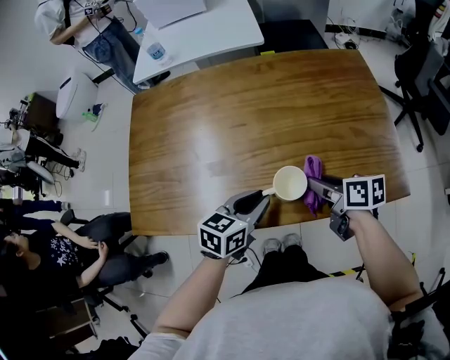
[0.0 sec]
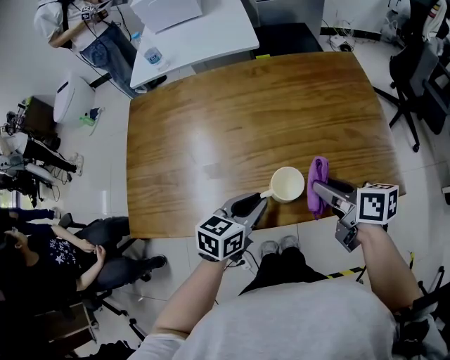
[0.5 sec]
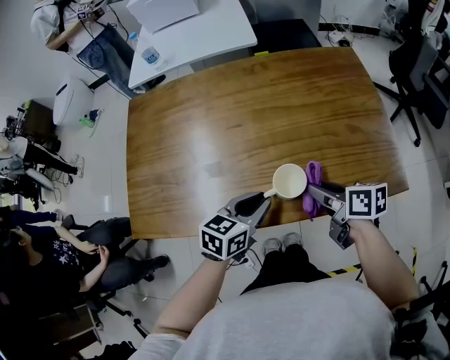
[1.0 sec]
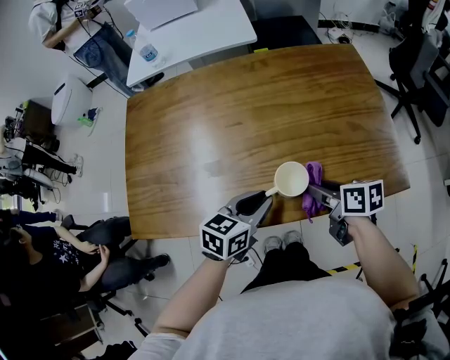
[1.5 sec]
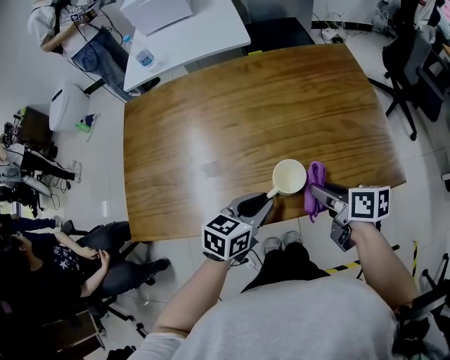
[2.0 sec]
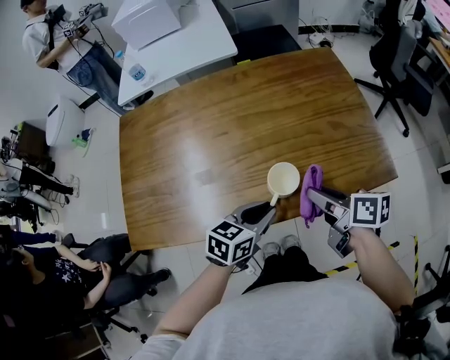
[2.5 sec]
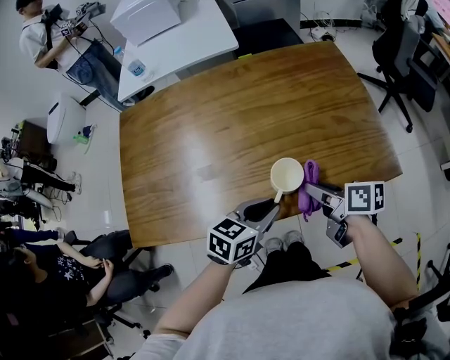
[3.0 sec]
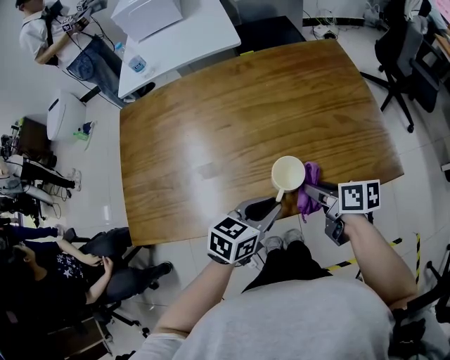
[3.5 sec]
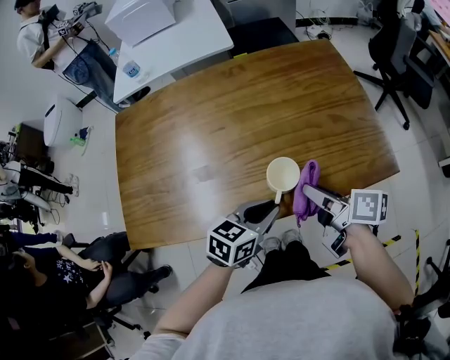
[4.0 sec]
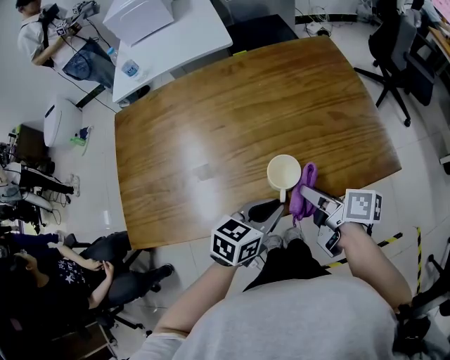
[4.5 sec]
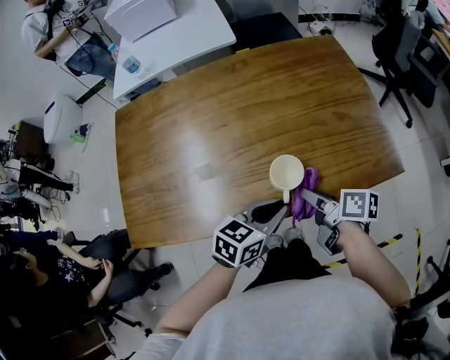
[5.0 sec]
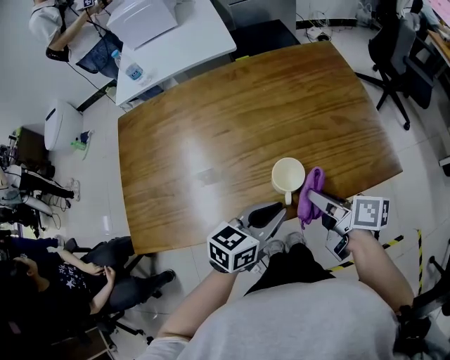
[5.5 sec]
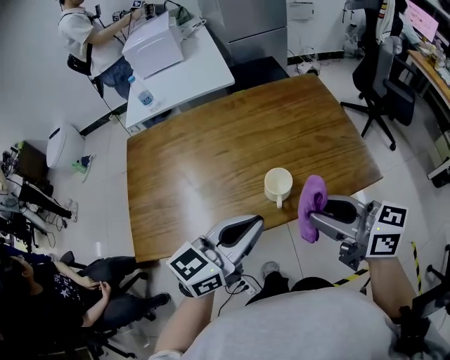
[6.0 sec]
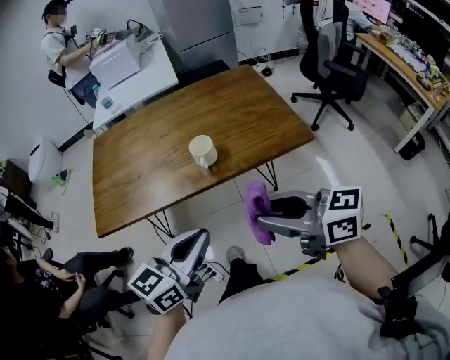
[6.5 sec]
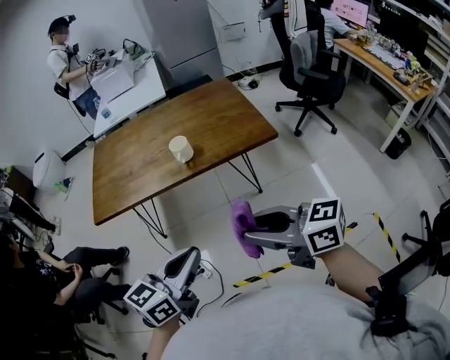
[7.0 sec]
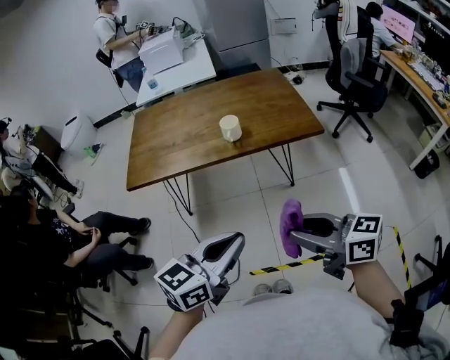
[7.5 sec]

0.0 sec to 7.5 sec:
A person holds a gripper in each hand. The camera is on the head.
0.0 sec to 2.0 sec: The right gripper reaches roughly 5 cm upward, then returns.
2.0 sec to 4.0 sec: The right gripper swings up and down, approximately 5 cm each way, with 2 reversals.
5.5 sec to 7.5 sec: Both grippers are carried backward, approximately 50 cm. The left gripper shifts some 20 cm upward. Meanwhile the right gripper swivels some 50 degrees.

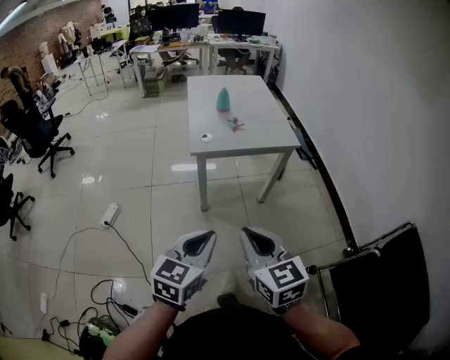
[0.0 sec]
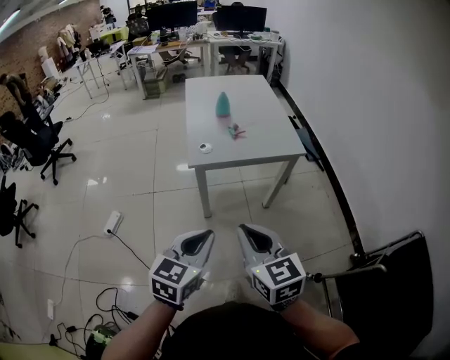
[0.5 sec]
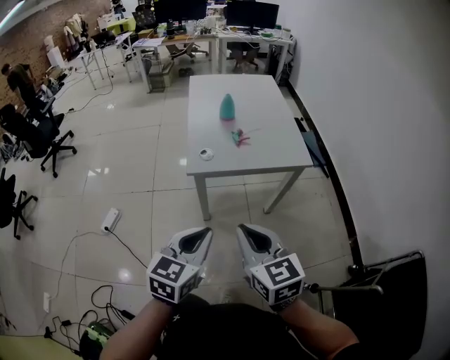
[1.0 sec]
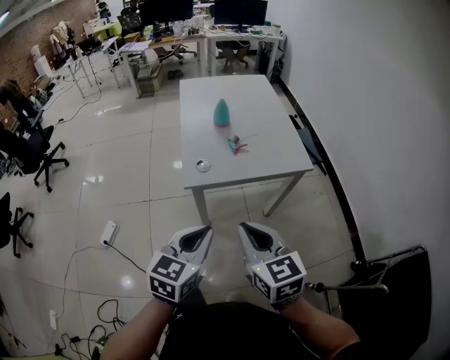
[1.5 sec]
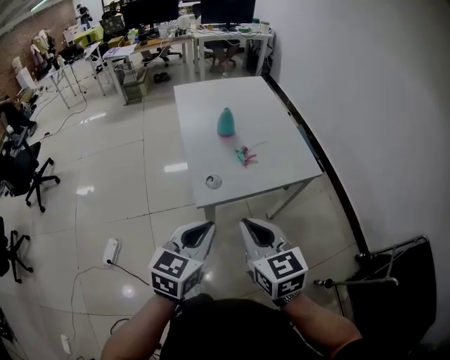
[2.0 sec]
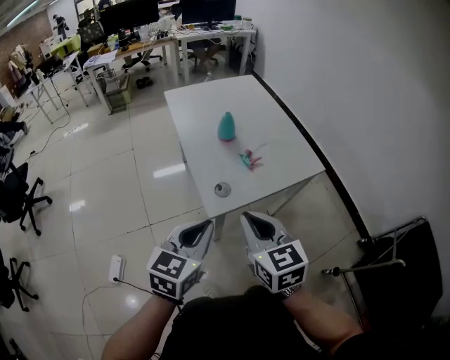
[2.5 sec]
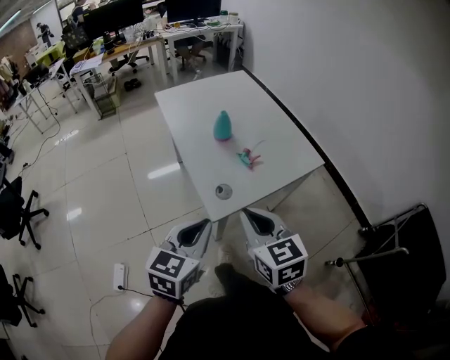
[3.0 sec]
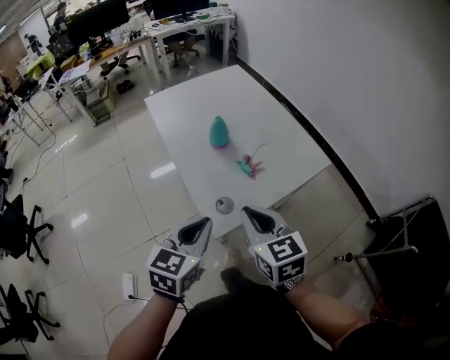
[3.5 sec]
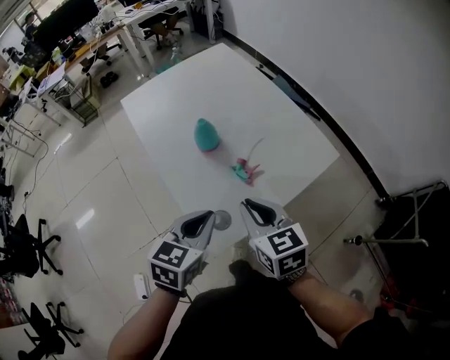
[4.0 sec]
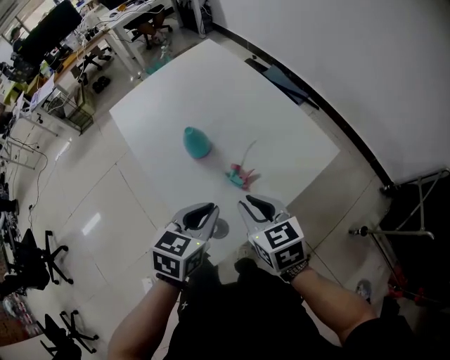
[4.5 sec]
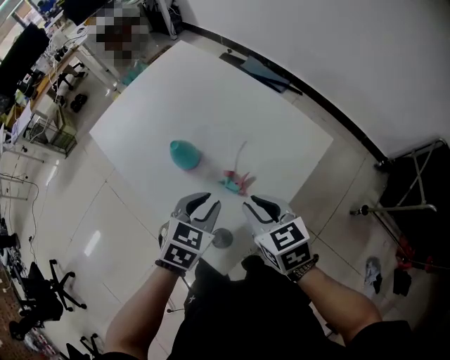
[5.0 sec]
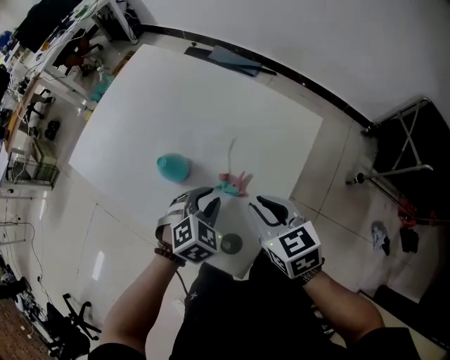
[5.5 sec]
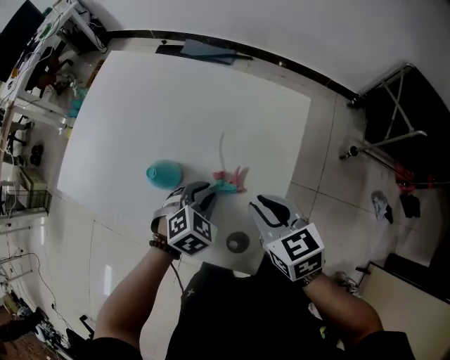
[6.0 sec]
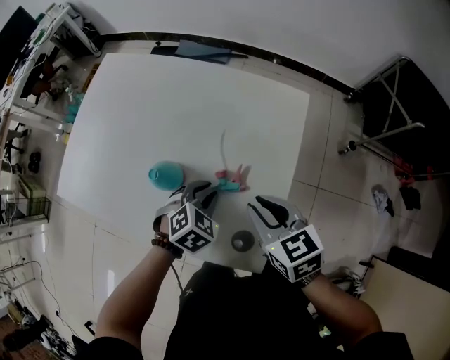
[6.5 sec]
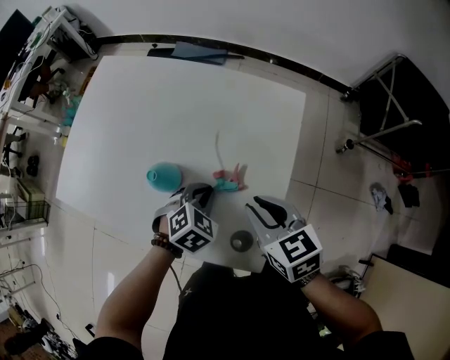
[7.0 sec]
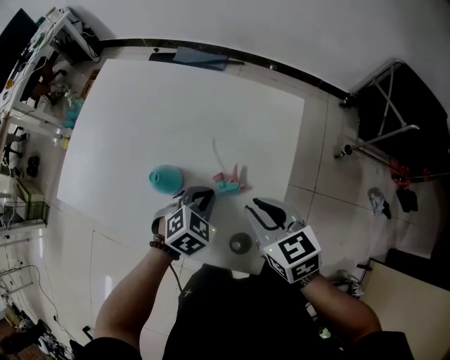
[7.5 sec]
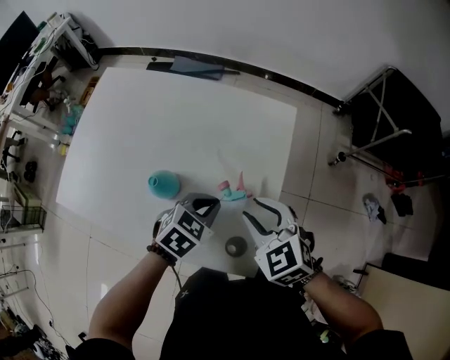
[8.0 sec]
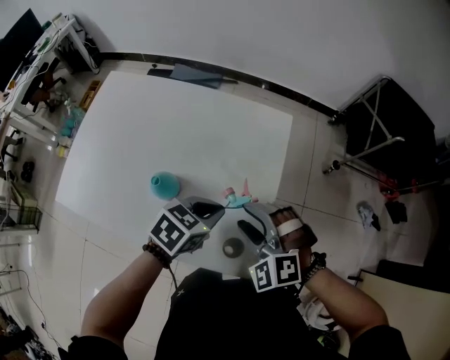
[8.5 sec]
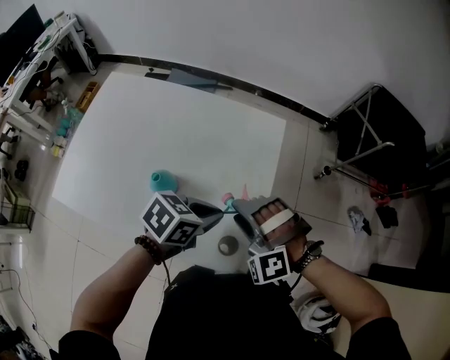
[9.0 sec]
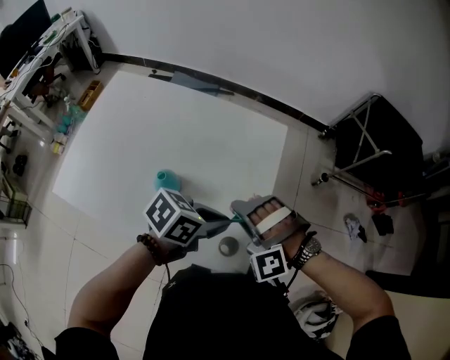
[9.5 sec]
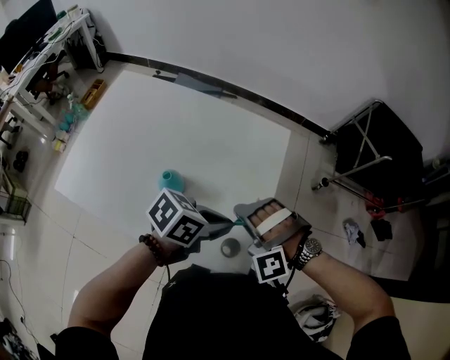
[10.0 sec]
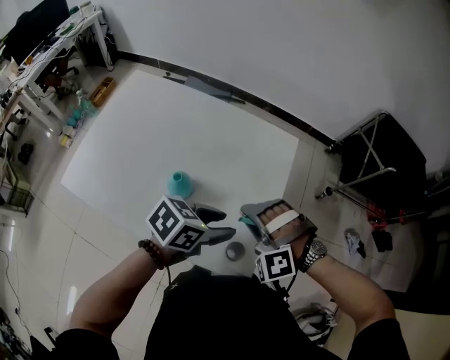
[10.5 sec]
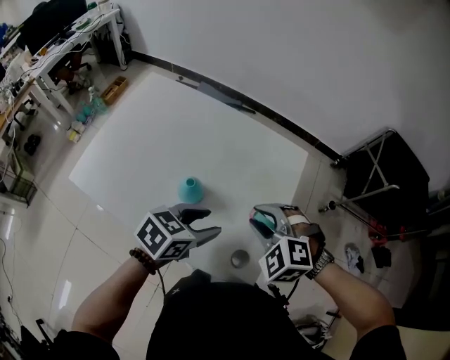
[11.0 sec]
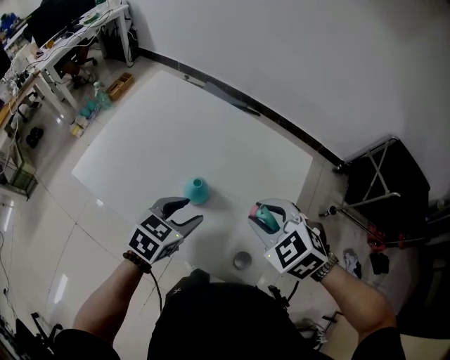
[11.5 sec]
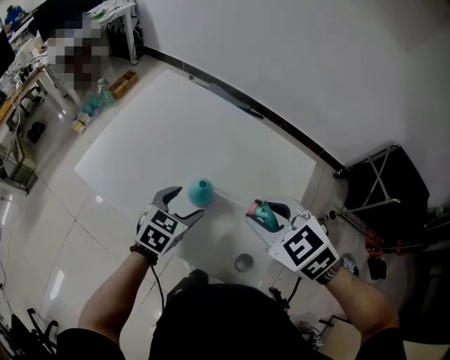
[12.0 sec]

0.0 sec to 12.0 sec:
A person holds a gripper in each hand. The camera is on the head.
0.0 sec to 2.0 sec: The two grippers go roughly 30 cm forward.
2.0 sec to 4.0 sec: The left gripper goes some 20 cm forward, and changes its angle by approximately 20 degrees. The right gripper is displaced forward and downward by some 25 cm, and changes its angle by some 20 degrees.
4.0 sec to 6.0 sec: The right gripper travels downward by about 5 cm, and swivels some 30 degrees. Meanwhile the left gripper travels downward by some 15 cm, and rotates around the line of its fingers by approximately 60 degrees, clockwise from behind.
6.0 sec to 8.0 sec: The left gripper shifts by approximately 5 cm. Meanwhile the right gripper swivels some 30 degrees.
8.0 sec to 10.0 sec: The right gripper twists some 70 degrees counterclockwise, seen from behind, while the left gripper heads upward, covering some 10 cm, and changes its angle by about 40 degrees.
10.0 sec to 12.0 sec: The right gripper travels upward by about 10 cm, and rolls clockwise, seen from behind, by roughly 60 degrees. Meanwhile the left gripper shifts by some 20 cm, rotates approximately 50 degrees, and opens up.

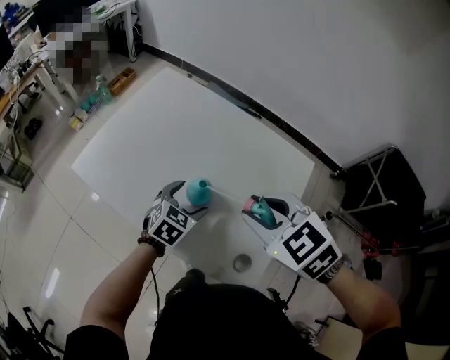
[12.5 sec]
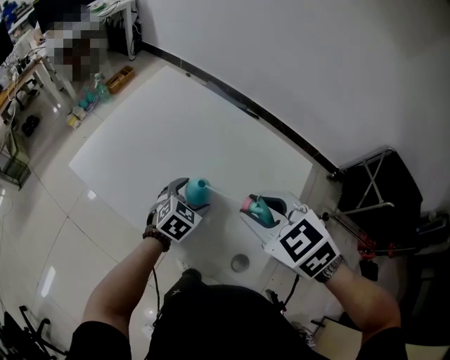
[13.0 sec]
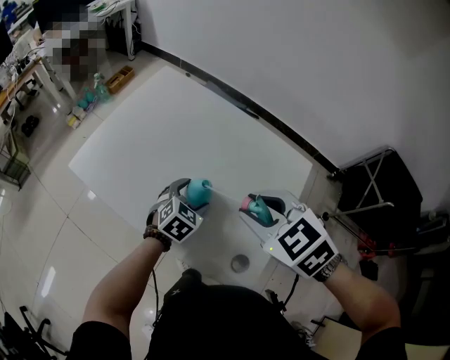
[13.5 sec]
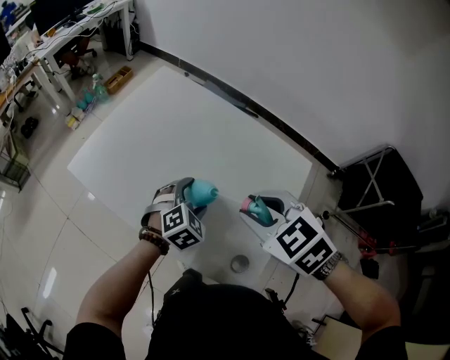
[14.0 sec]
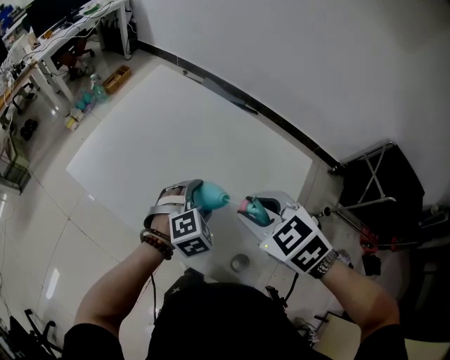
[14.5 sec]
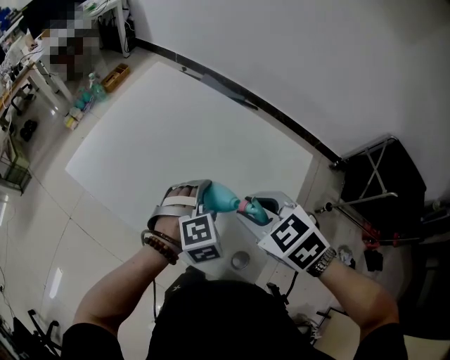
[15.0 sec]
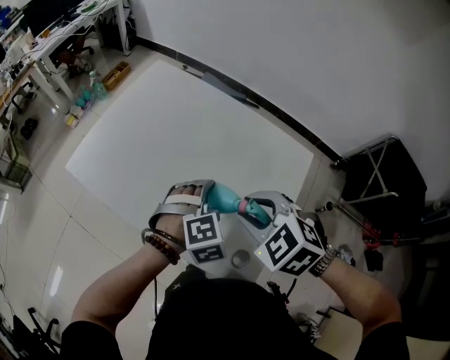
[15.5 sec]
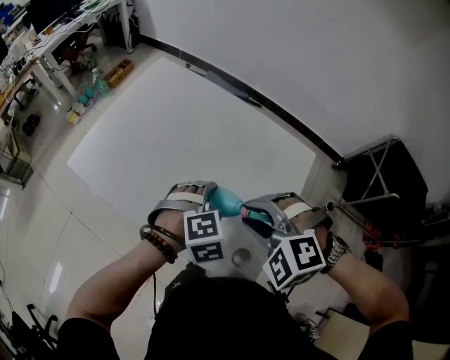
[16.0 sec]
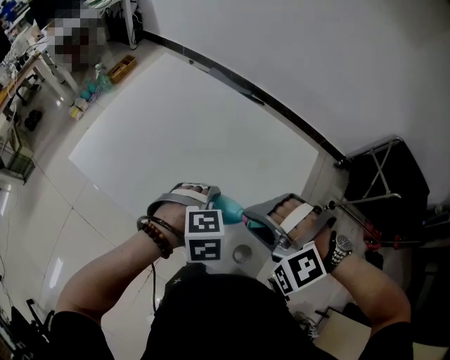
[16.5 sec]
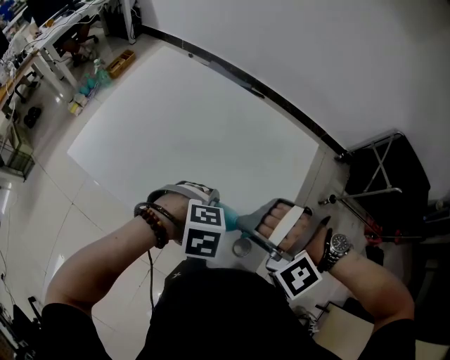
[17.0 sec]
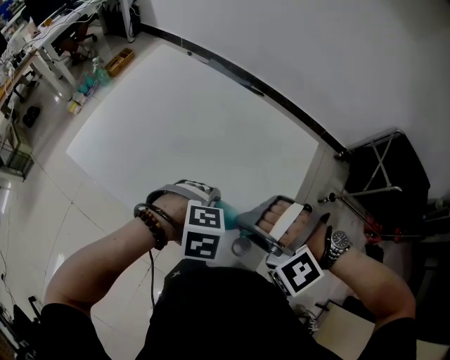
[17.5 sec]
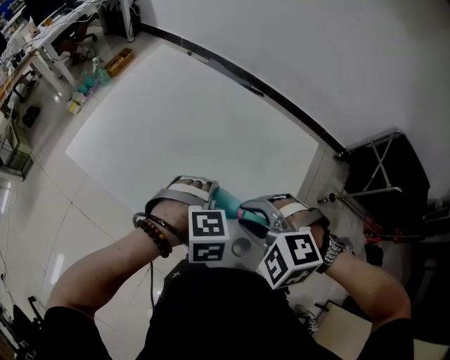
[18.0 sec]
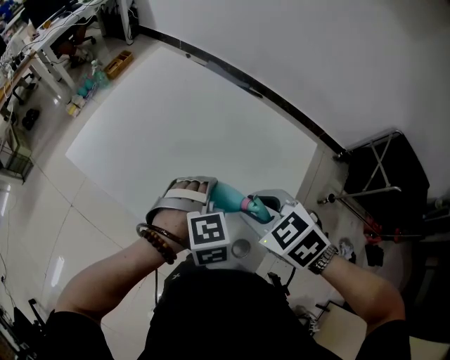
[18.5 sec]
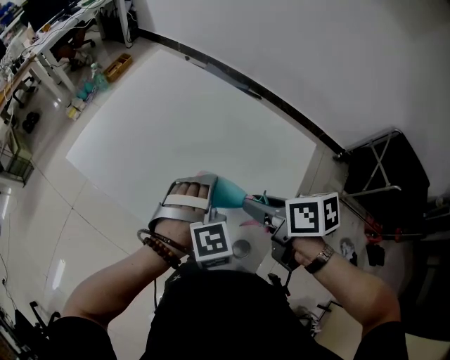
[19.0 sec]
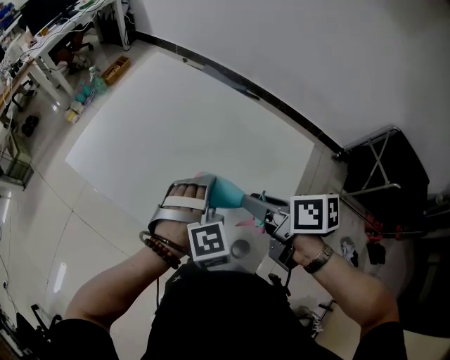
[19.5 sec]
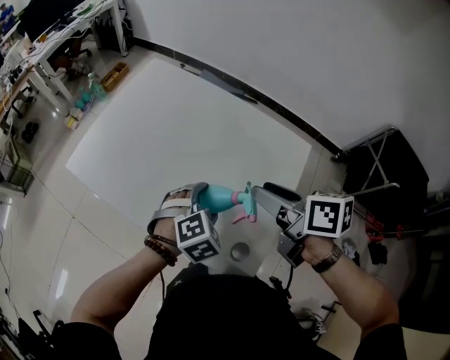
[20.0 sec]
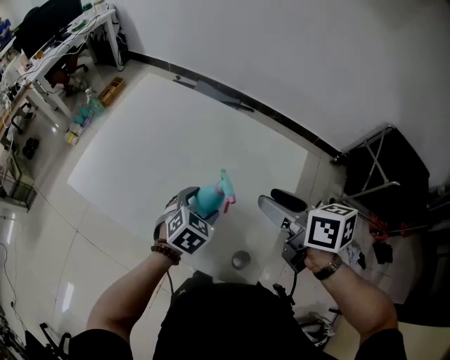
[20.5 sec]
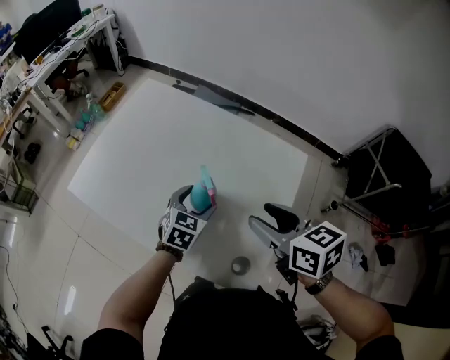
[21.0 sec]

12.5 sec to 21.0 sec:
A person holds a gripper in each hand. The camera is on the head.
12.5 sec to 14.5 sec: The left gripper changes its angle by some 30 degrees.
14.5 sec to 16.5 sec: The two grippers go approximately 5 cm backward. The right gripper rotates around the line of its fingers by roughly 60 degrees, counterclockwise from behind. The left gripper rotates about 30 degrees.
16.5 sec to 19.0 sec: The right gripper ends up roughly 5 cm from where it was, and twists approximately 120 degrees clockwise, seen from behind. The left gripper moves about 5 cm, and changes its angle by about 30 degrees.
19.0 sec to 21.0 sec: The left gripper heads downward and forward, covering some 10 cm, and rolls counterclockwise, seen from behind, by roughly 50 degrees. Meanwhile the right gripper ends up about 5 cm from where it was, rotates about 30 degrees, and opens up.
